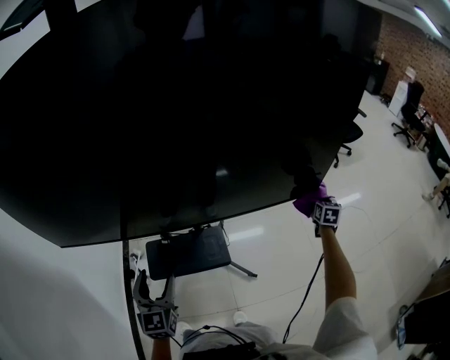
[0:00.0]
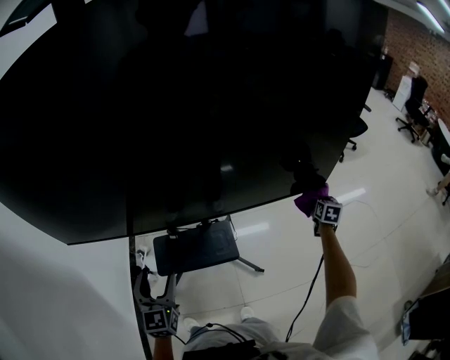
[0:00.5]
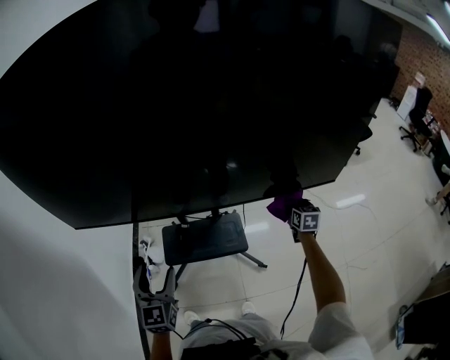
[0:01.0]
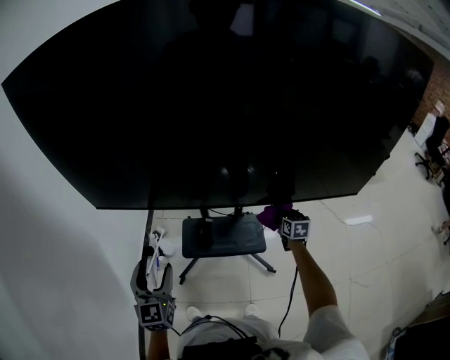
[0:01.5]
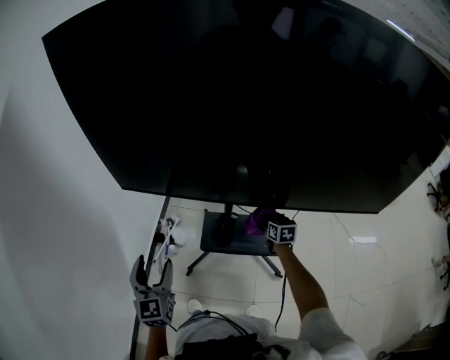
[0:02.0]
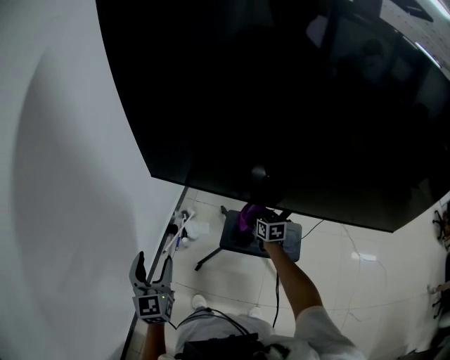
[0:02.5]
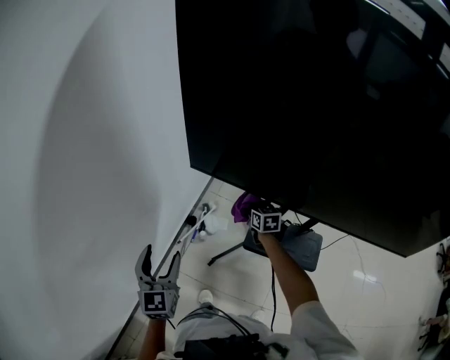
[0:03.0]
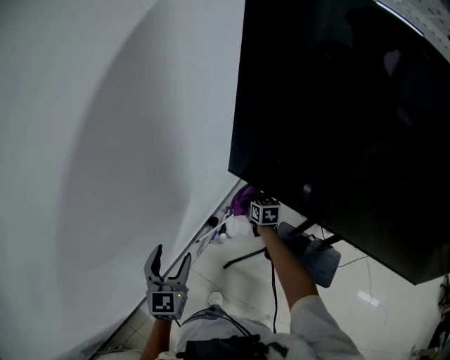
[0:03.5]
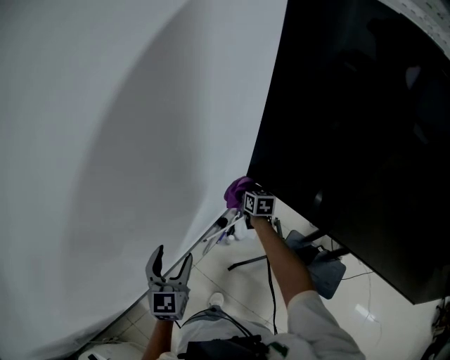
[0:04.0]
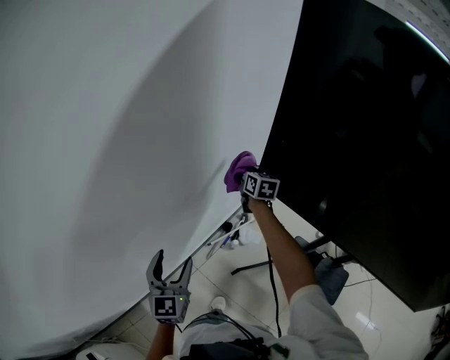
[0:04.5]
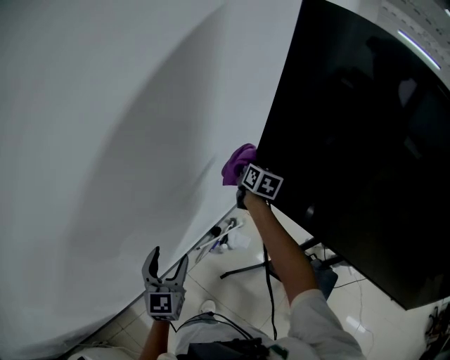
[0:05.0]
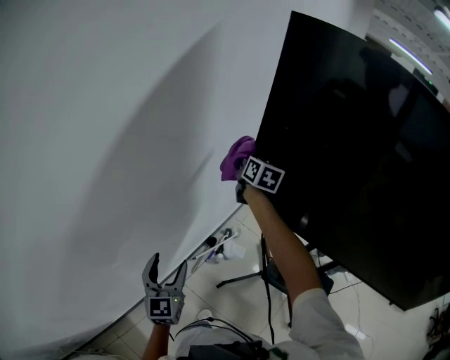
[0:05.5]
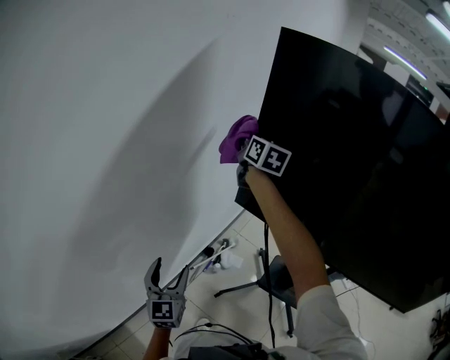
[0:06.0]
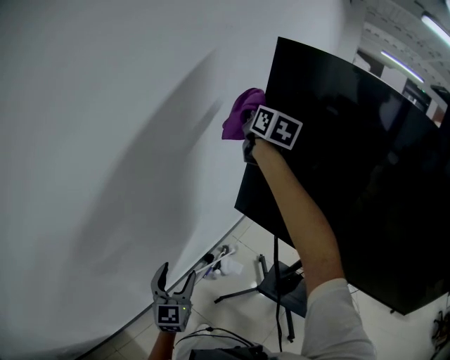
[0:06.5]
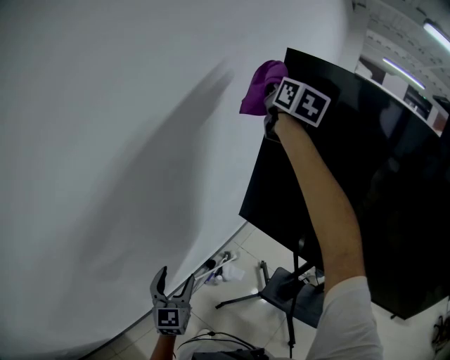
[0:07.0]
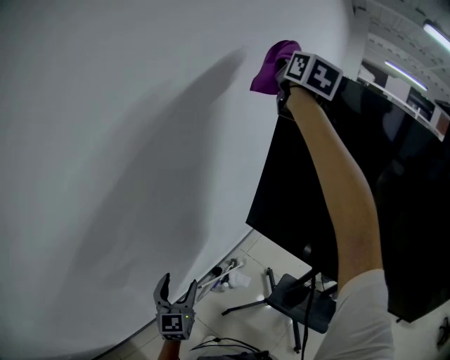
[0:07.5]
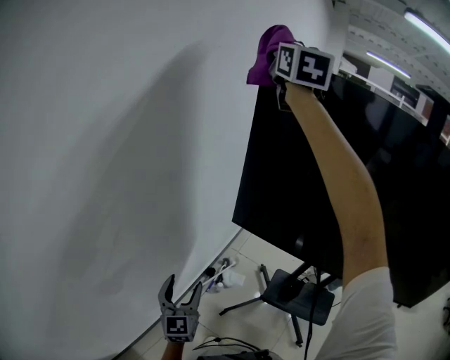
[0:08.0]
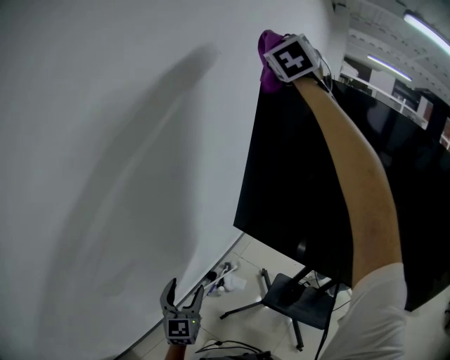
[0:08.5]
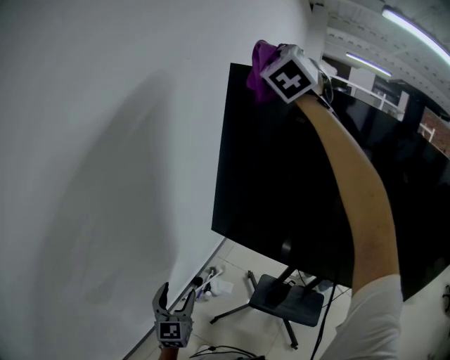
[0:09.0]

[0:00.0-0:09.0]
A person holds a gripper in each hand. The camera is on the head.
0:00.0 to 0:02.0: The left gripper ends up roughly 30 cm from where it was; the right gripper ends up about 60 cm from where it was, and turns by approximately 40 degrees.
0:02.0 to 0:04.5: The right gripper ends up roughly 70 cm from where it was, and rotates approximately 30 degrees. The left gripper moves about 30 cm, and turns by roughly 30 degrees.
0:04.5 to 0:07.0: The right gripper is displaced upward by about 50 cm, and changes its angle by approximately 30 degrees.
0:07.0 to 0:09.0: The right gripper travels upward, to the right and backward by some 15 cm, and twists about 70 degrees counterclockwise, seen from behind. The left gripper heads to the right, covering about 5 cm.

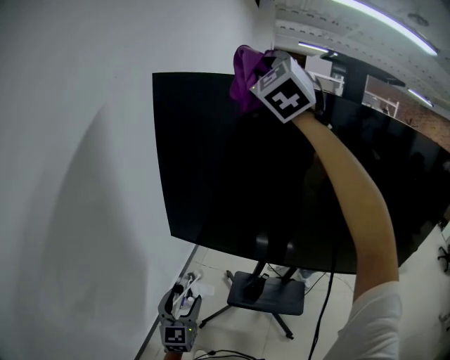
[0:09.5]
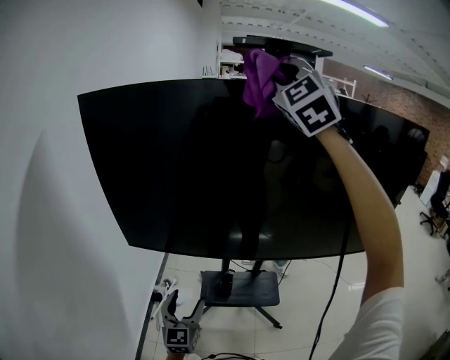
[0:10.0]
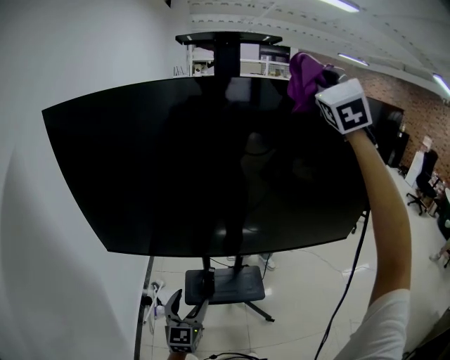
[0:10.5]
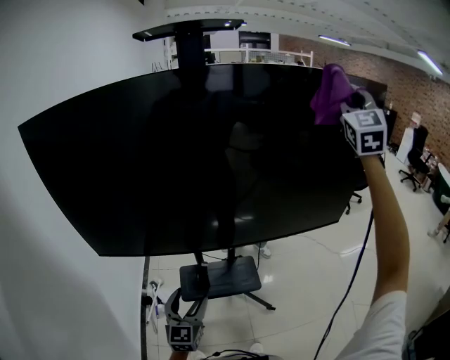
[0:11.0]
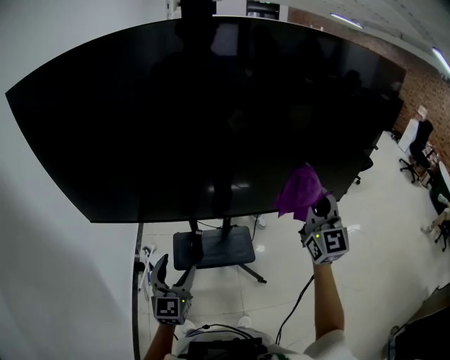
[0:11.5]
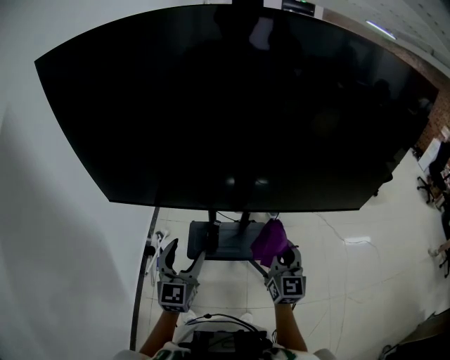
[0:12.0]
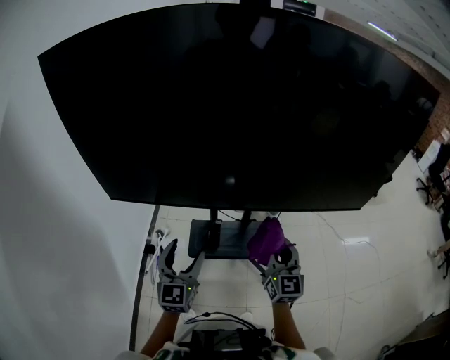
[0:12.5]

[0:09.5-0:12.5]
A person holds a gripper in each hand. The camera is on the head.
0:09.5 to 0:11.0: The left gripper shifts by approximately 30 cm, and swivels some 30 degrees; the right gripper changes place by roughly 70 cm, and rotates approximately 40 degrees.
0:11.0 to 0:12.5: The left gripper heads to the left, covering some 5 cm. The right gripper moves downward and to the left, some 60 cm, and swivels some 50 degrees.

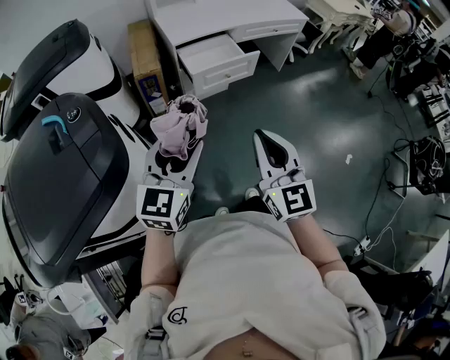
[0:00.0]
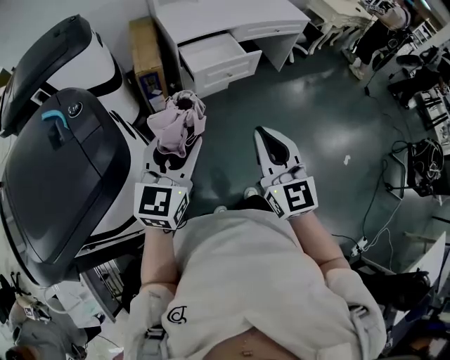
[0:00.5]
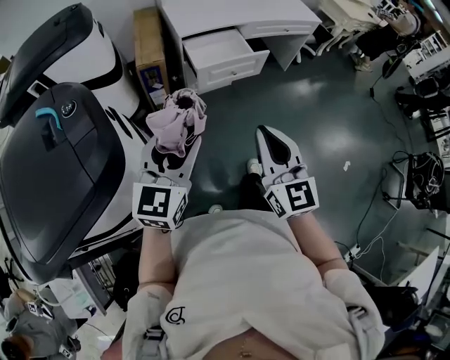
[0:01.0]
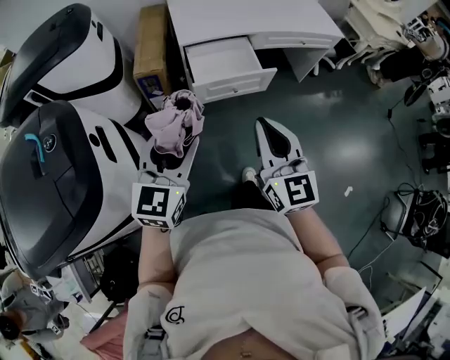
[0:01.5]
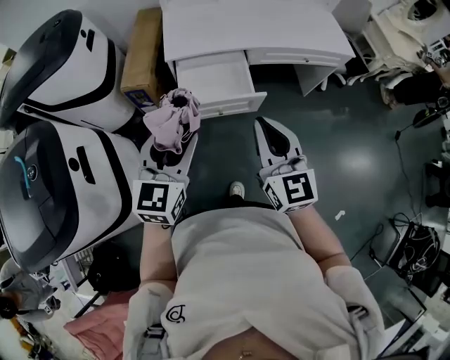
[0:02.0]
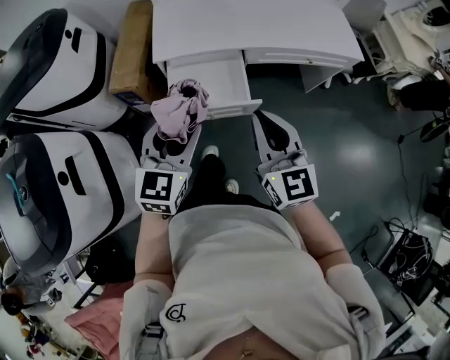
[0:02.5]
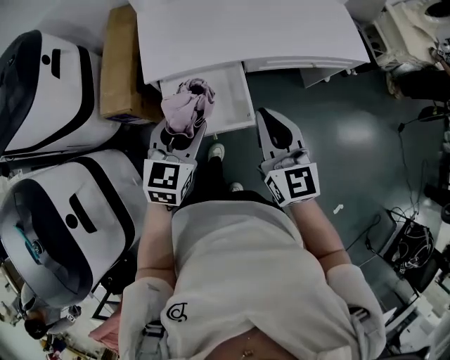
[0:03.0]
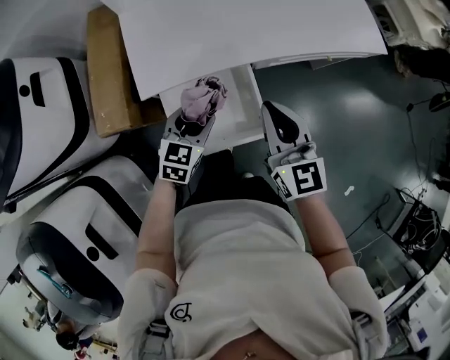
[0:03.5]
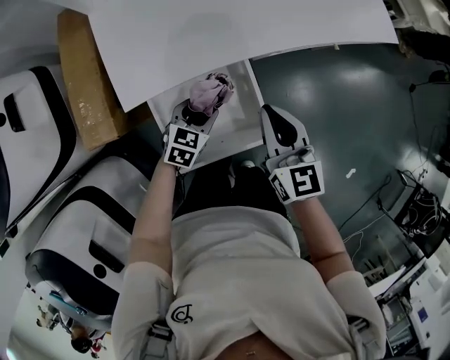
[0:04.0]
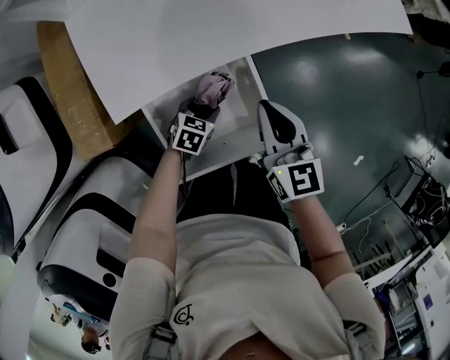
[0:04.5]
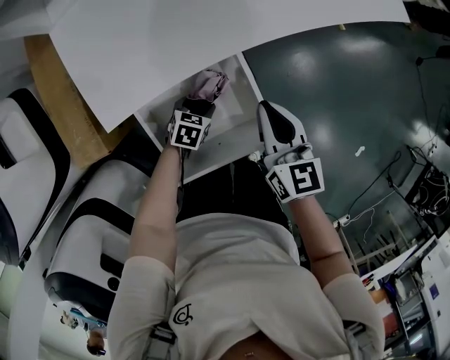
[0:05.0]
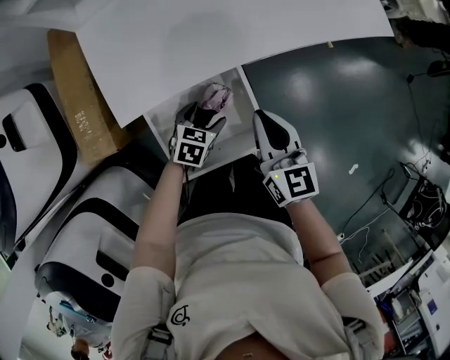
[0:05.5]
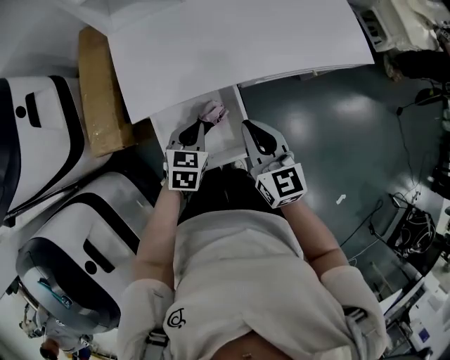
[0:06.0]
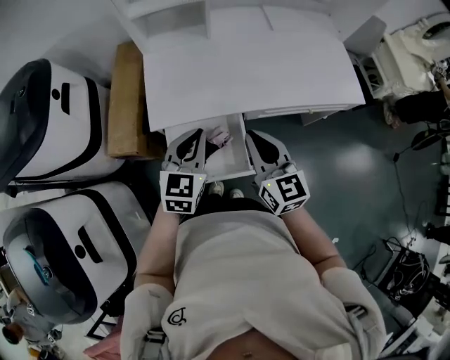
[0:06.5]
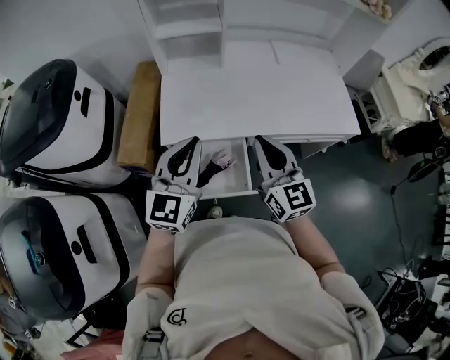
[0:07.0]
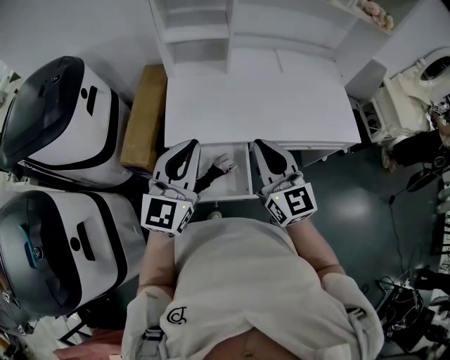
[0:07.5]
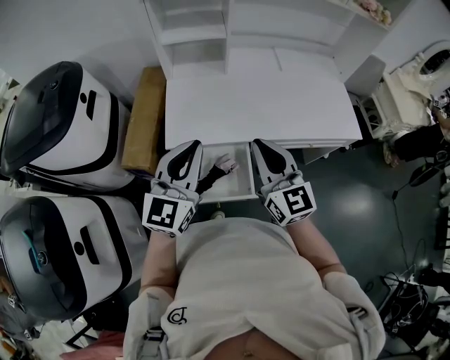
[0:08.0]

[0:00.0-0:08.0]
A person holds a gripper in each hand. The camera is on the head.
0:00.0 to 0:02.0: The grippers both shift forward and to the right by approximately 35 cm.
0:02.0 to 0:04.0: The left gripper goes some 50 cm downward and forward, and angles its fingers downward, by approximately 30 degrees, while the right gripper shifts roughly 35 cm forward and downward, and turns by some 20 degrees.
0:04.0 to 0:06.0: The left gripper is displaced upward by some 10 cm, and closes.
0:06.0 to 0:08.0: The left gripper travels upward by some 30 cm, and tips its fingers upward by approximately 50 degrees; the right gripper goes some 15 cm upward, and rotates approximately 20 degrees.

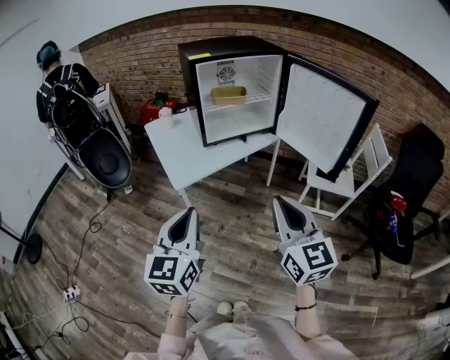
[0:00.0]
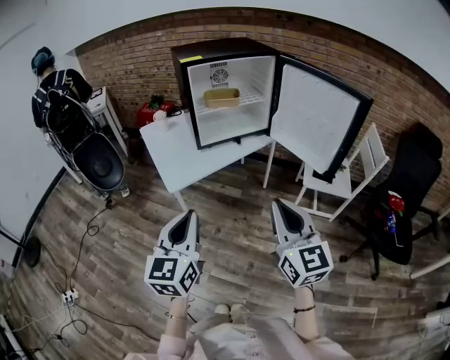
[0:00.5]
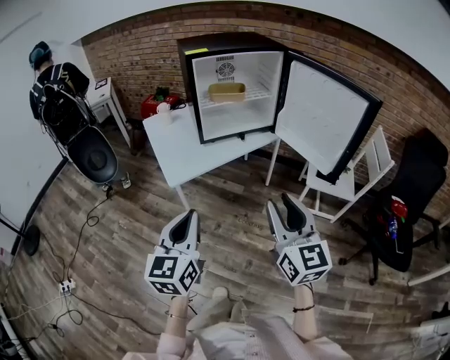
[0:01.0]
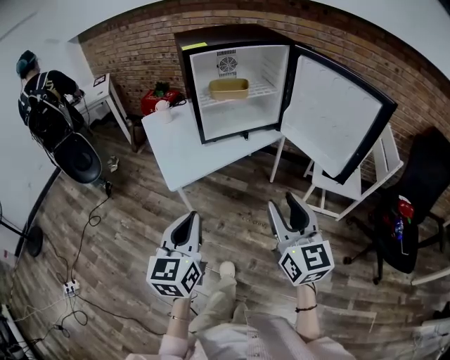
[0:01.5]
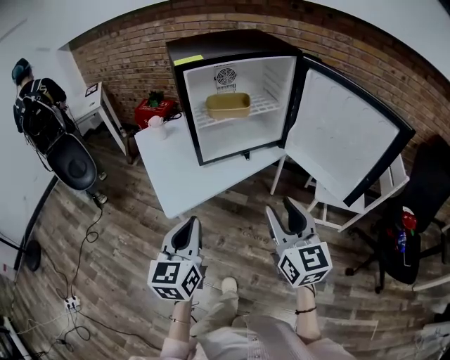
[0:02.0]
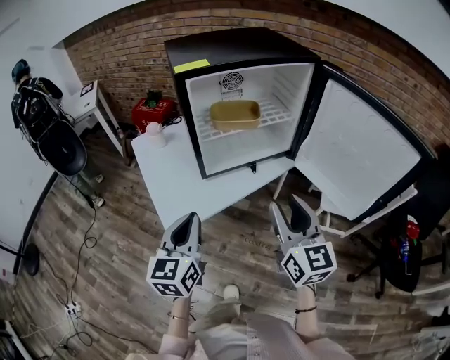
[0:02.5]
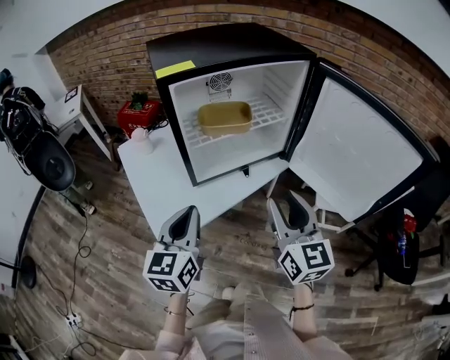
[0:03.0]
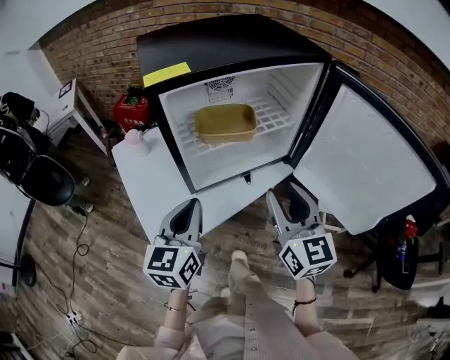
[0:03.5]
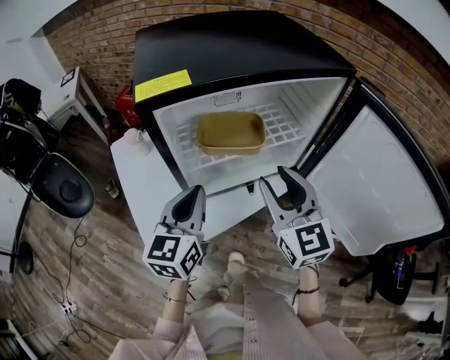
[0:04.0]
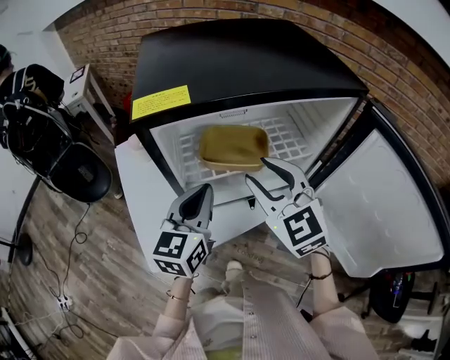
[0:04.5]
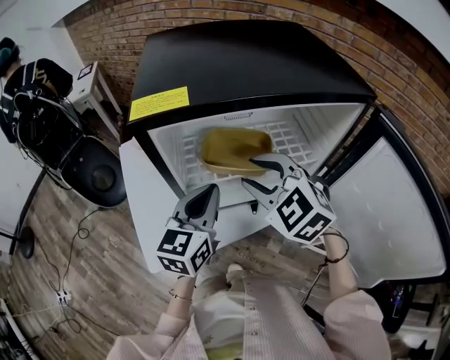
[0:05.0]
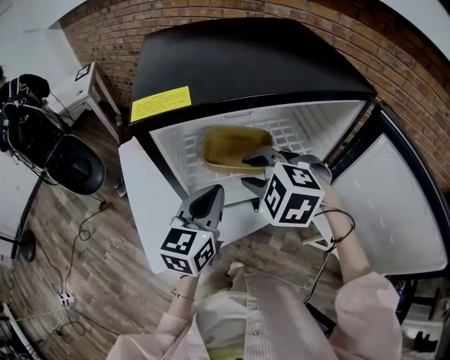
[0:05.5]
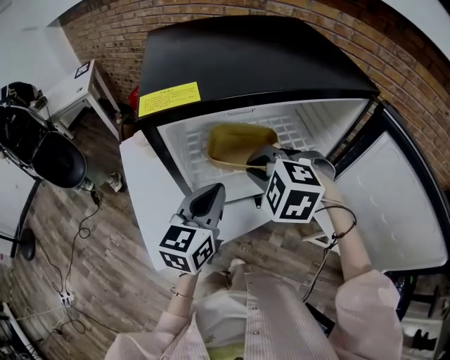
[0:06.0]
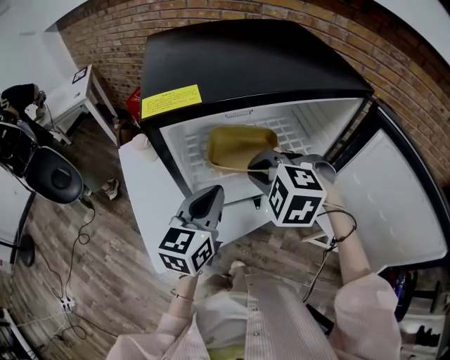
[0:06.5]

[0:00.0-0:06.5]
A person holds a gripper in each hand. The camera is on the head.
0:00.0 to 0:02.0: Both grippers move forward, roughly 15 cm. The right gripper opens up.
0:02.0 to 0:04.5: Both grippers move forward, about 35 cm. The right gripper turns by roughly 40 degrees.
0:04.5 to 0:06.5: The right gripper travels downward by some 5 cm, angles its fingers downward, by about 40 degrees, and closes its fingers.
